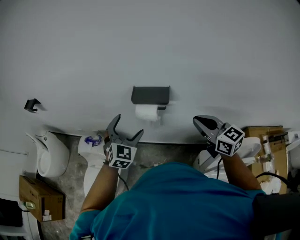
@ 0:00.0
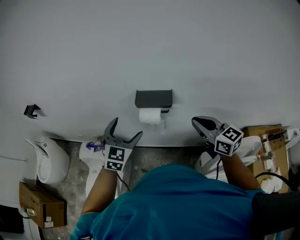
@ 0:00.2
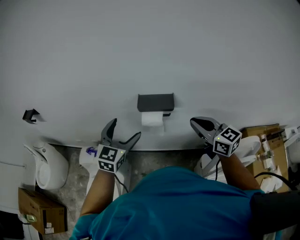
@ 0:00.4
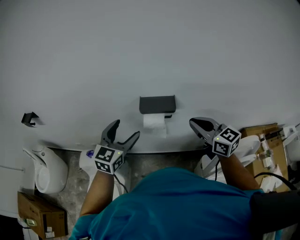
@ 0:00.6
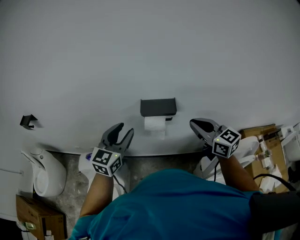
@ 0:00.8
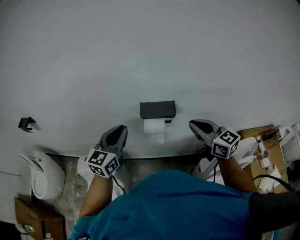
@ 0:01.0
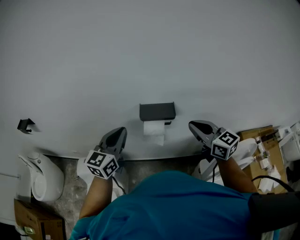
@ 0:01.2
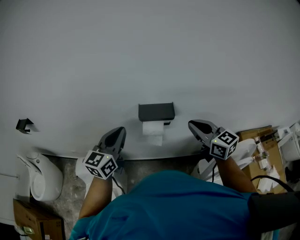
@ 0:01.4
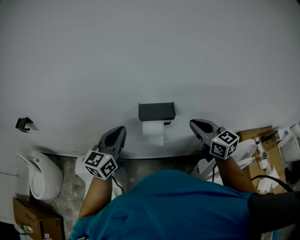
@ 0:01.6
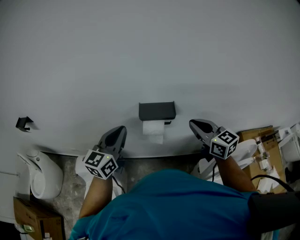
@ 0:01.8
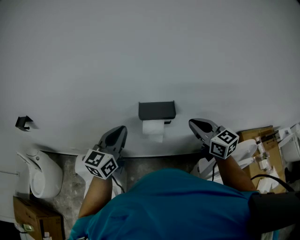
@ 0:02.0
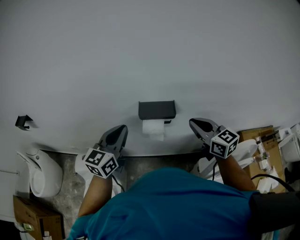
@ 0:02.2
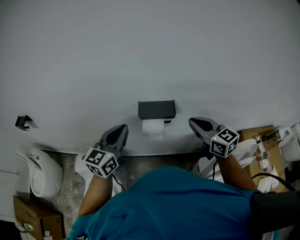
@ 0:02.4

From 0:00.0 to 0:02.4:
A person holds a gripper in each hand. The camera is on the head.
From 0:00.0 to 0:01.2: The right gripper heads to the left, covering roughly 5 cm; the left gripper goes about 10 cm upward and to the left, rotates about 40 degrees, and closes.
From 0:01.2 to 0:02.4: The grippers stay close to where they were, moving slightly.

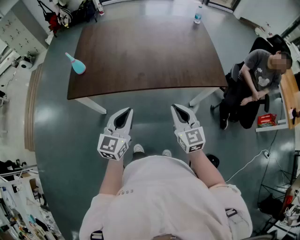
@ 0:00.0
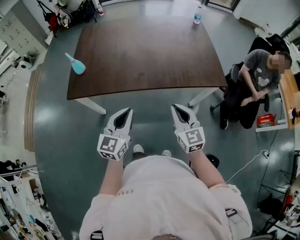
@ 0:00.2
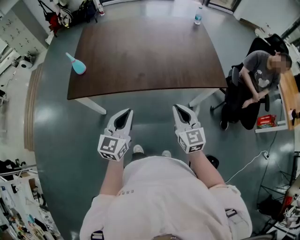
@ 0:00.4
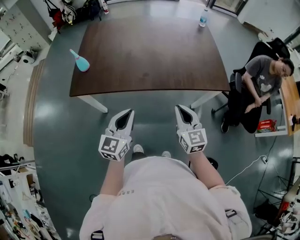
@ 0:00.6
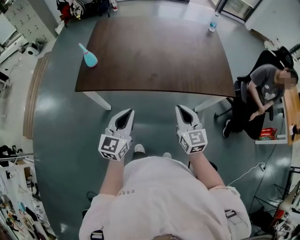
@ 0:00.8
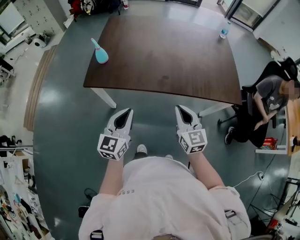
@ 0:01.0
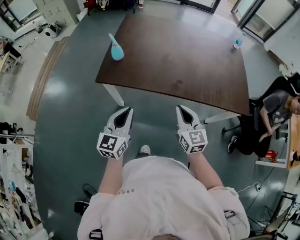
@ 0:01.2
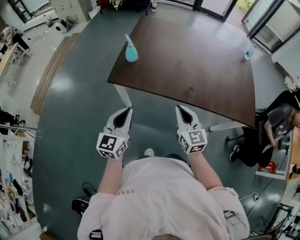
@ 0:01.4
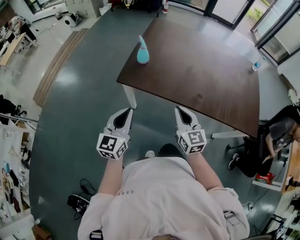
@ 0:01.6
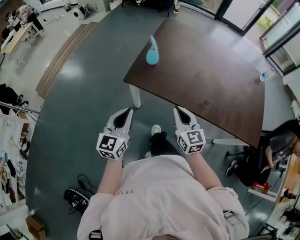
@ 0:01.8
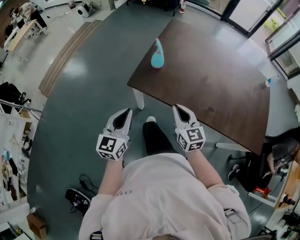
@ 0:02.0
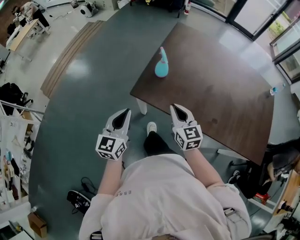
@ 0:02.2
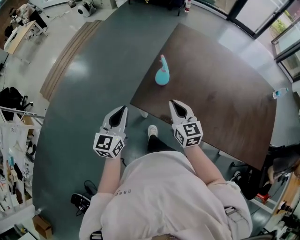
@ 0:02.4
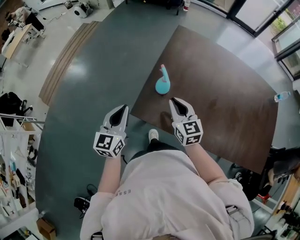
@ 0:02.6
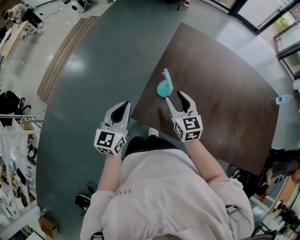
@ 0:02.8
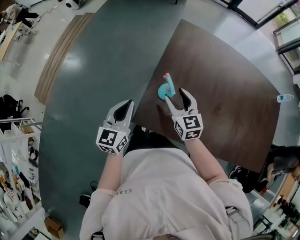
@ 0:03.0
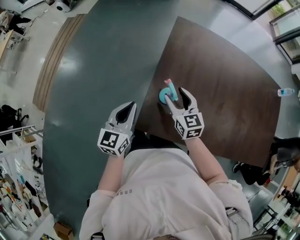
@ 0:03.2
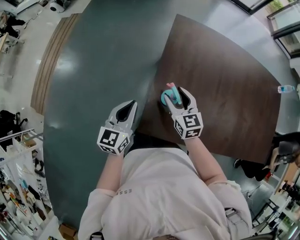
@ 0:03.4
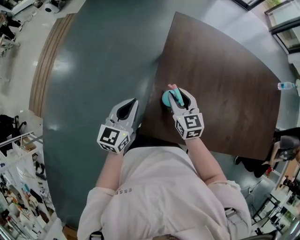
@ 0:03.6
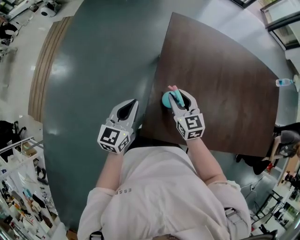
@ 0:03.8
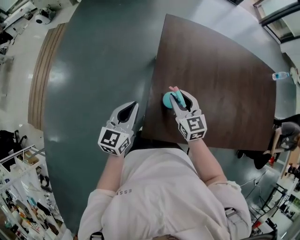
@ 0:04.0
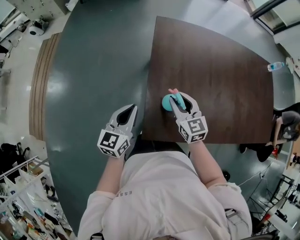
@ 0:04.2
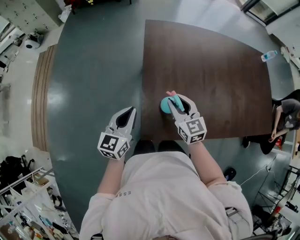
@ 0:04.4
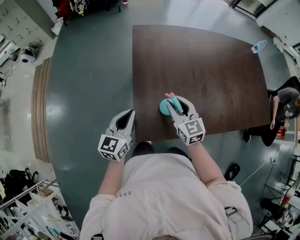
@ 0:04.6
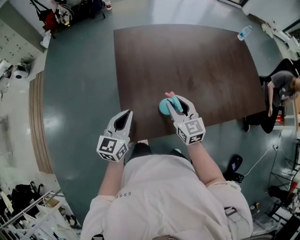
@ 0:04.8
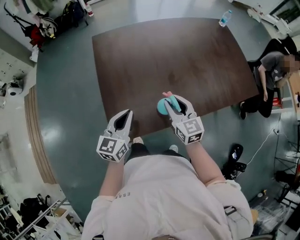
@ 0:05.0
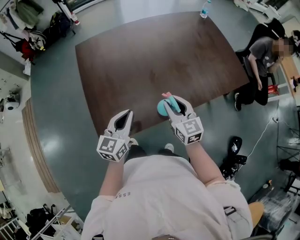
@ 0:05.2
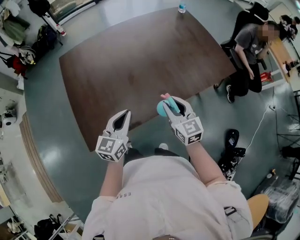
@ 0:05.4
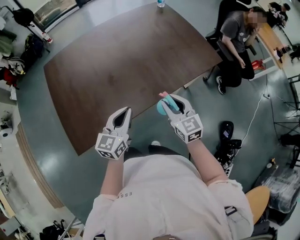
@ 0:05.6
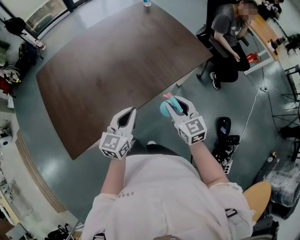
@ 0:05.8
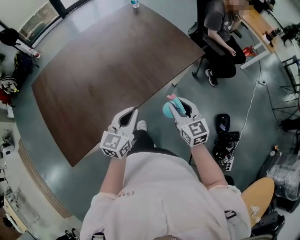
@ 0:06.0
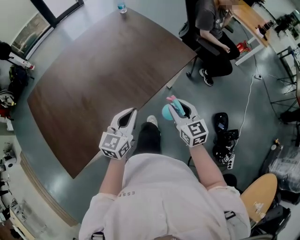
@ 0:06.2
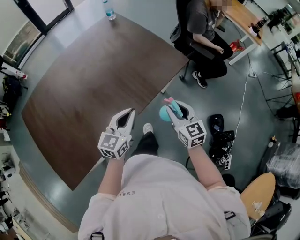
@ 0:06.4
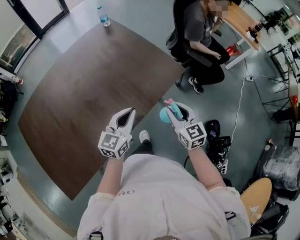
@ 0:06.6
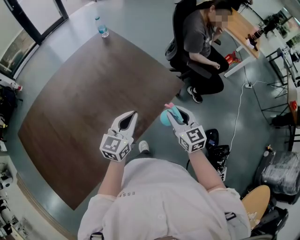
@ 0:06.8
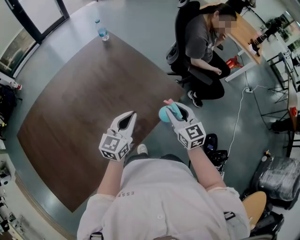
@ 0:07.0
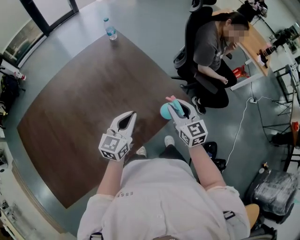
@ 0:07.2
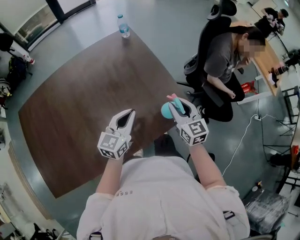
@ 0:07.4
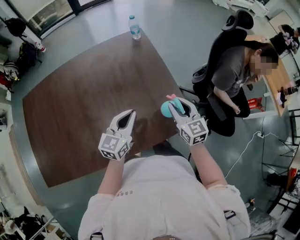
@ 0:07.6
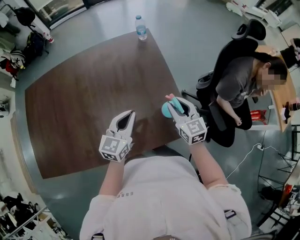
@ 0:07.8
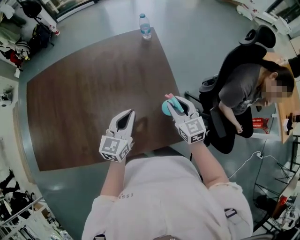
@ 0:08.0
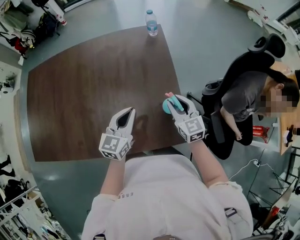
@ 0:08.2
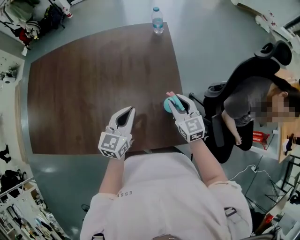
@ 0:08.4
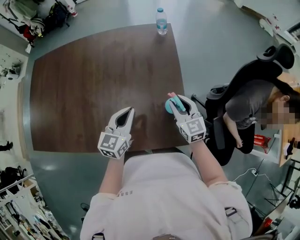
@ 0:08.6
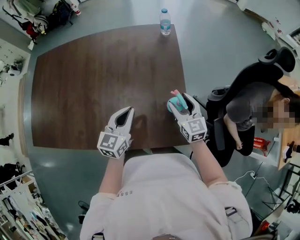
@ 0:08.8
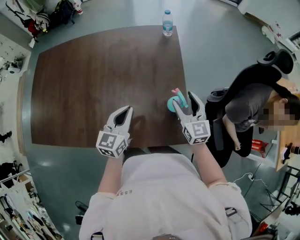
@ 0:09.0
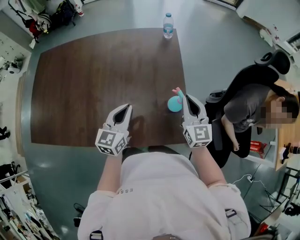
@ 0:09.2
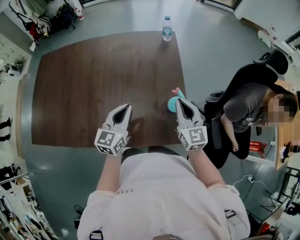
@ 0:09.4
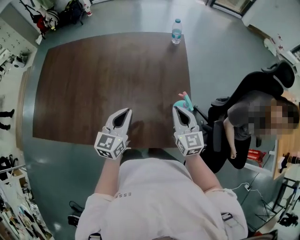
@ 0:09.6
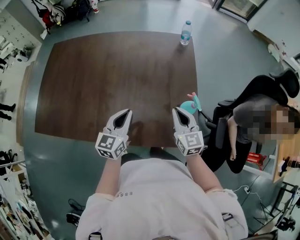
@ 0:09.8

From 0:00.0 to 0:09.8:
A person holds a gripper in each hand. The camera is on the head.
From 0:00.0 to 0:01.4: The two grippers go some 20 cm to the left. The left gripper changes its angle by roughly 20 degrees.
From 0:01.4 to 0:02.8: Both grippers move forward and to the left, some 35 cm. The right gripper opens up.
From 0:02.8 to 0:04.2: The left gripper is displaced forward by about 10 cm, and turns by about 30 degrees. The right gripper moves forward, roughly 5 cm.
From 0:04.2 to 0:05.6: The two grippers travel together, approximately 50 cm. The right gripper changes its angle by about 30 degrees. The left gripper swivels roughly 40 degrees.
From 0:05.6 to 0:07.0: Both grippers travel together forward and to the right, approximately 40 cm.
From 0:07.0 to 0:08.4: The right gripper changes place by about 25 cm, and changes its angle by about 40 degrees; the left gripper shifts by roughly 15 cm, and swivels some 40 degrees.
From 0:08.4 to 0:09.8: The right gripper travels to the left and backward by some 10 cm, and closes its fingers. The left gripper goes approximately 10 cm to the left.

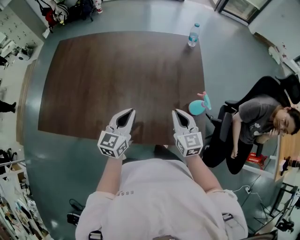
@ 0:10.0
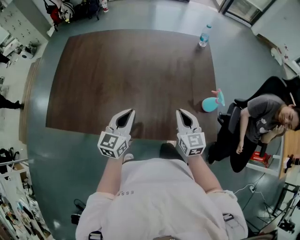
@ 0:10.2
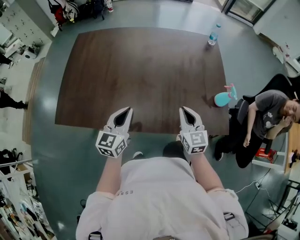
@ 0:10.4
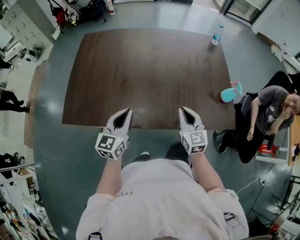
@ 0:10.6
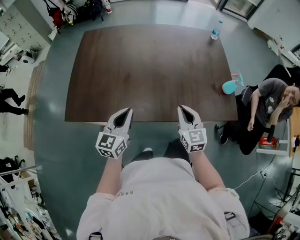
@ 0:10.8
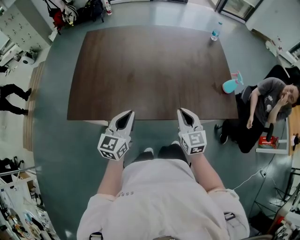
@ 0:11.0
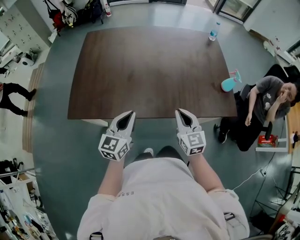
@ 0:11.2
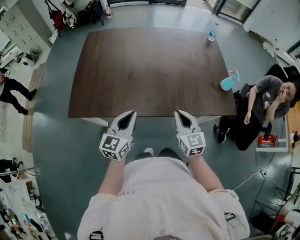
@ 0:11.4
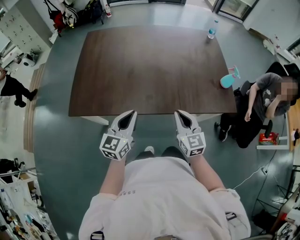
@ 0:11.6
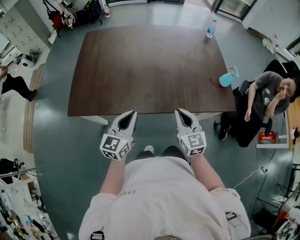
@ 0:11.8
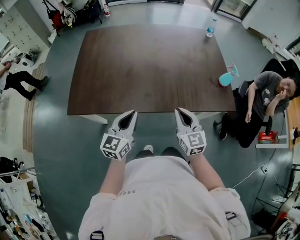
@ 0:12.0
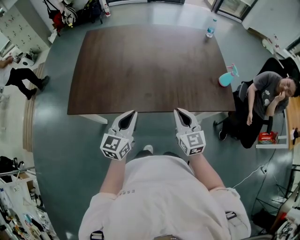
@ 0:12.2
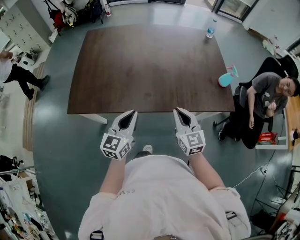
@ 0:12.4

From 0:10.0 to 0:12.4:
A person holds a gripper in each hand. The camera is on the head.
From 0:10.0 to 0:11.2: The two grippers go about 30 cm to the left and backward.
From 0:11.2 to 0:12.4: The grippers move only a little.

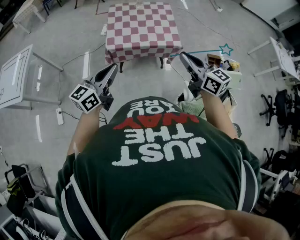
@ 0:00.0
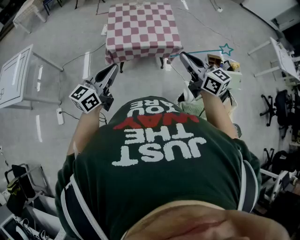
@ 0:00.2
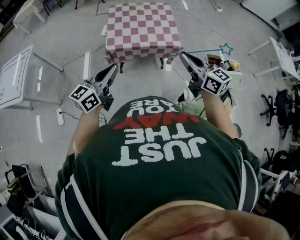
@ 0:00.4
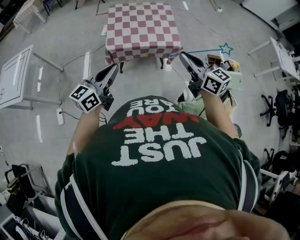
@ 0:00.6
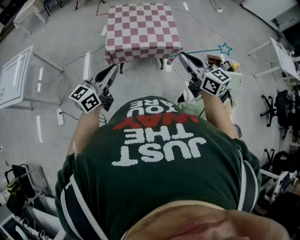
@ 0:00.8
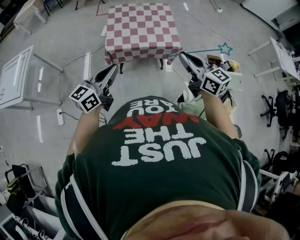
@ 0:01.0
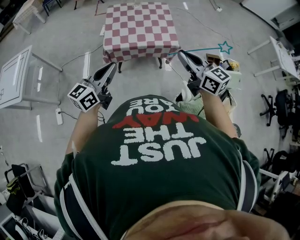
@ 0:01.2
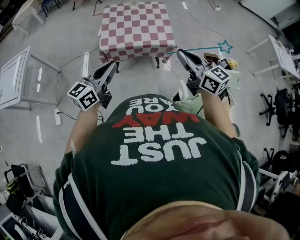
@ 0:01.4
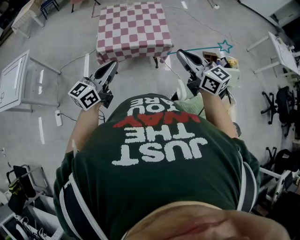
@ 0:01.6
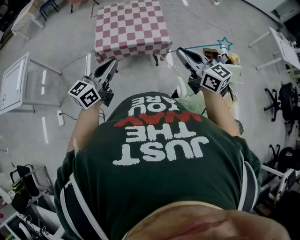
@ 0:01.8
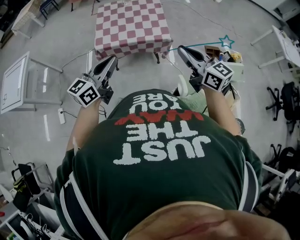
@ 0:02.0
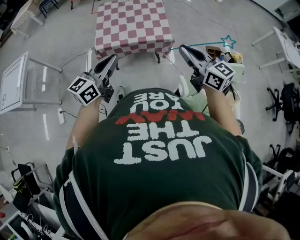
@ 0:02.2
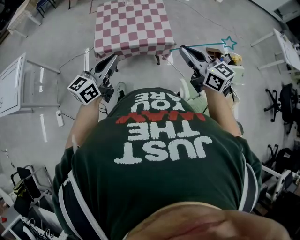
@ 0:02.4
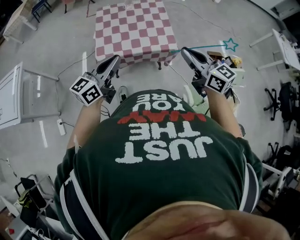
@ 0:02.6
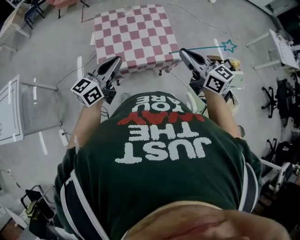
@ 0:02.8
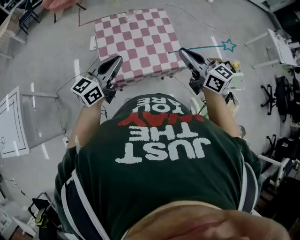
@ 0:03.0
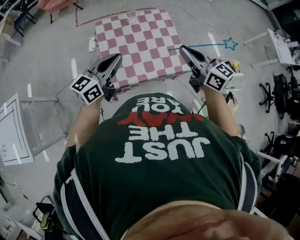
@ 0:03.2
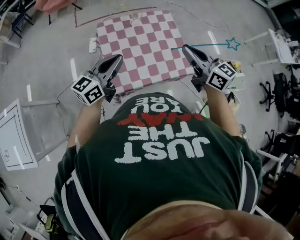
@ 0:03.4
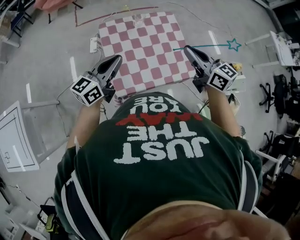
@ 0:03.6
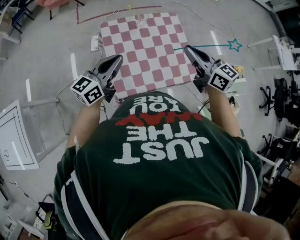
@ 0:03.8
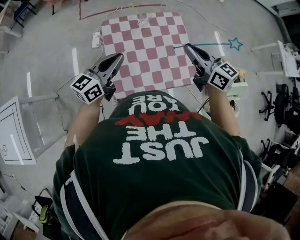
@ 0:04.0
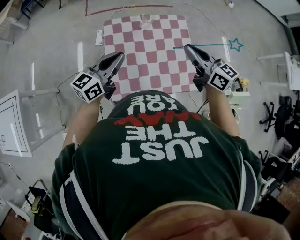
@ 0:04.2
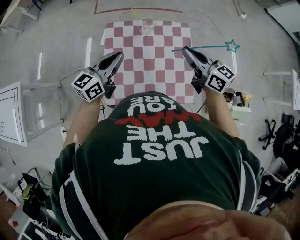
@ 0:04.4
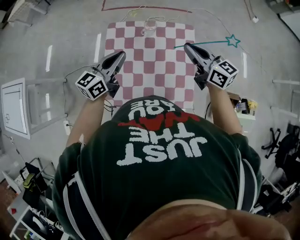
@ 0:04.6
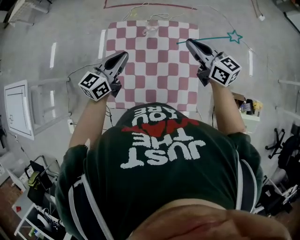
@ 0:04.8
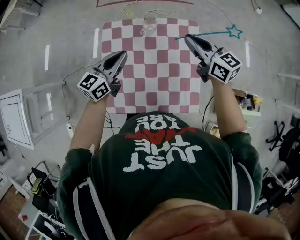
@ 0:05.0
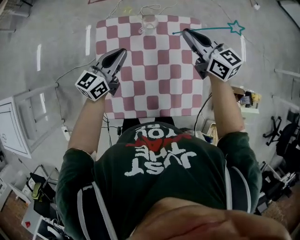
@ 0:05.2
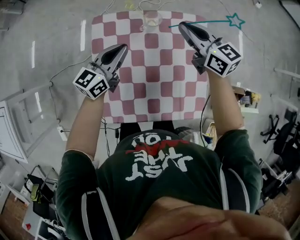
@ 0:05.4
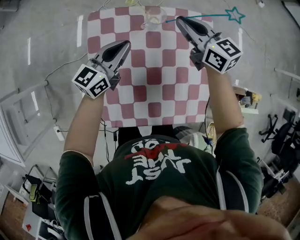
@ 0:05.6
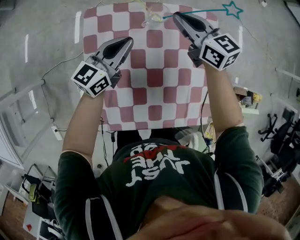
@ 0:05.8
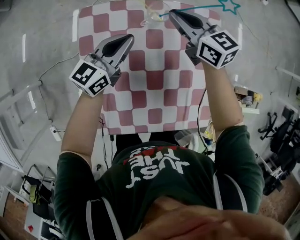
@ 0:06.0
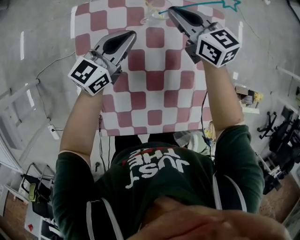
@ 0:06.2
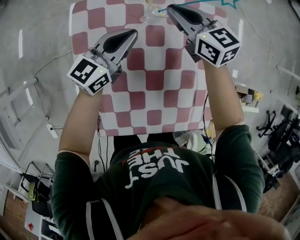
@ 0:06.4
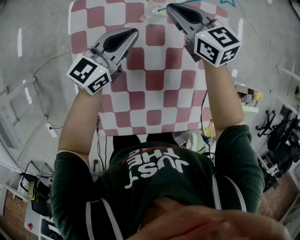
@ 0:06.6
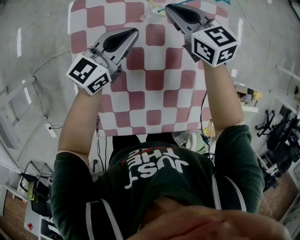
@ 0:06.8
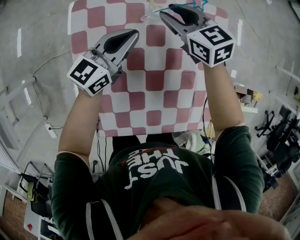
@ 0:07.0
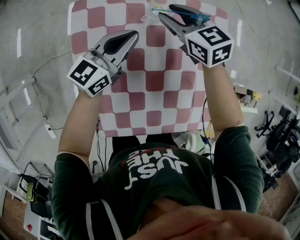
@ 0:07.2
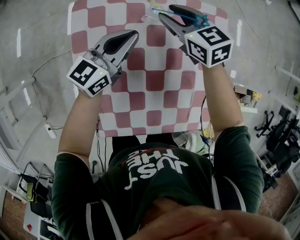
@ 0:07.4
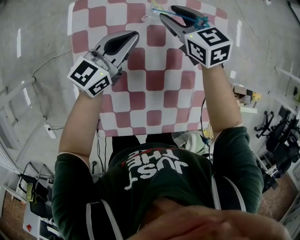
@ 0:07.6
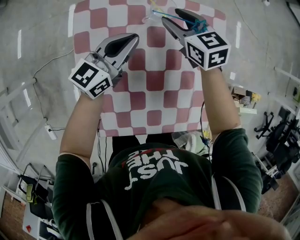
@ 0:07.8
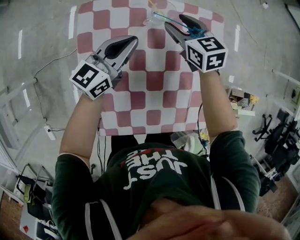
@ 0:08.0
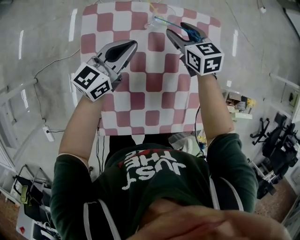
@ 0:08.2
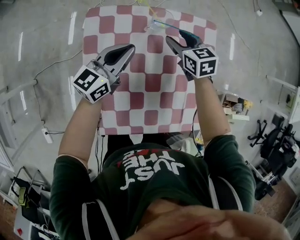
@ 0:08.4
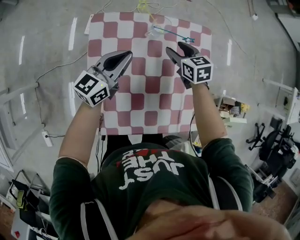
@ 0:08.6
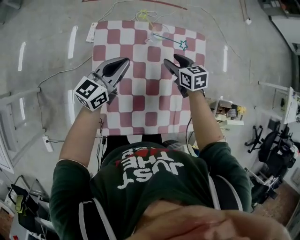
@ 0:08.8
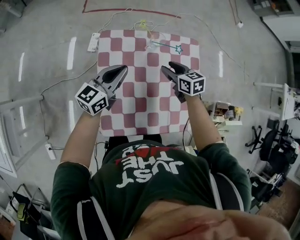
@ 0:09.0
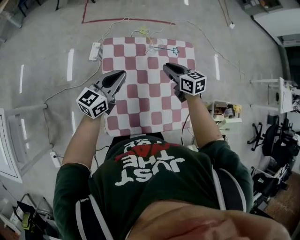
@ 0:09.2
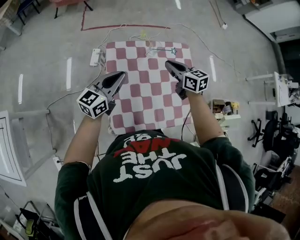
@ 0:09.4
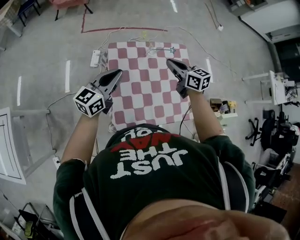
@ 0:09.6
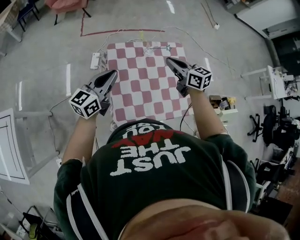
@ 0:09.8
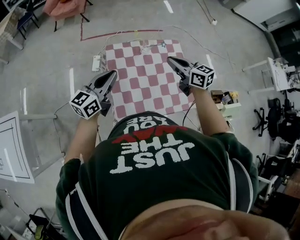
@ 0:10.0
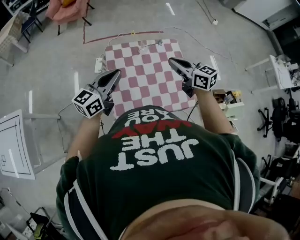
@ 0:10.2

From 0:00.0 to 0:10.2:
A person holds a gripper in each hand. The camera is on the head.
From 0:00.0 to 0:01.4: The left gripper moves to the right, approximately 5 cm.
From 0:01.4 to 0:03.0: The two grippers go roughly 30 cm forward.
From 0:03.0 to 0:04.4: The two grippers go about 30 cm forward.
From 0:04.4 to 0:05.8: The right gripper goes some 35 cm forward and downward, while the left gripper is displaced downward and forward by some 30 cm.
From 0:05.8 to 0:07.2: The right gripper heads downward, covering some 10 cm, and opens its fingers. The left gripper moves some 5 cm.
From 0:07.2 to 0:08.8: The left gripper shifts about 15 cm upward, backward and to the left. Meanwhile the right gripper is displaced backward and to the right by approximately 10 cm.
From 0:08.8 to 0:10.2: Both grippers move upward and backward, some 35 cm. The right gripper turns by about 30 degrees, and closes up.
